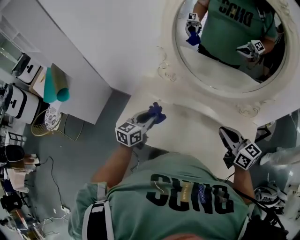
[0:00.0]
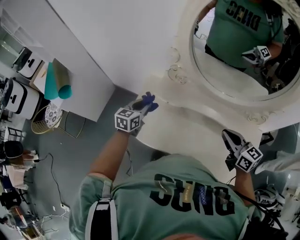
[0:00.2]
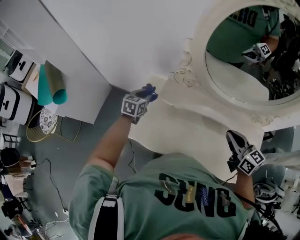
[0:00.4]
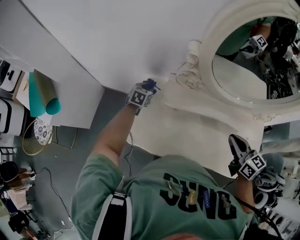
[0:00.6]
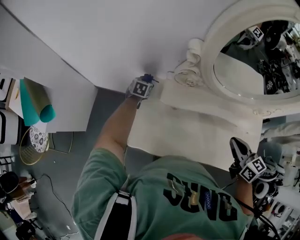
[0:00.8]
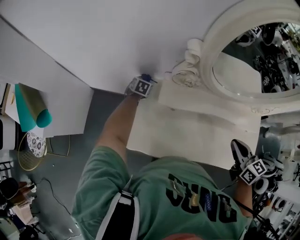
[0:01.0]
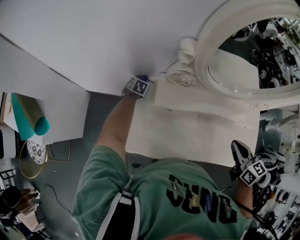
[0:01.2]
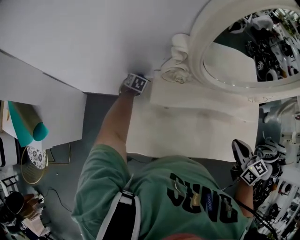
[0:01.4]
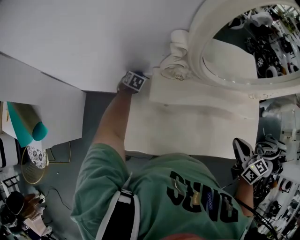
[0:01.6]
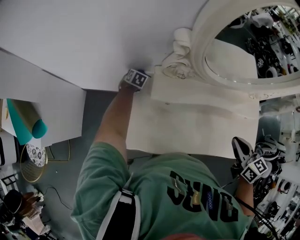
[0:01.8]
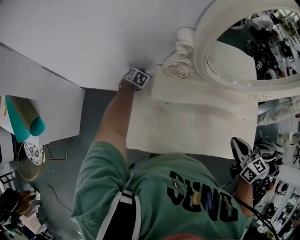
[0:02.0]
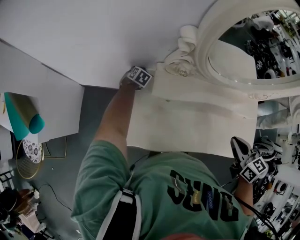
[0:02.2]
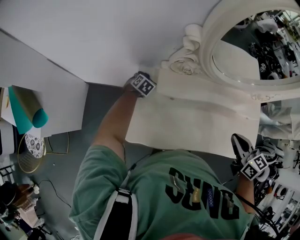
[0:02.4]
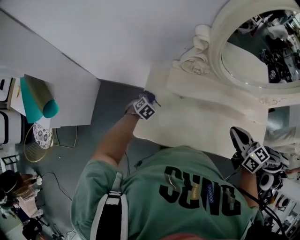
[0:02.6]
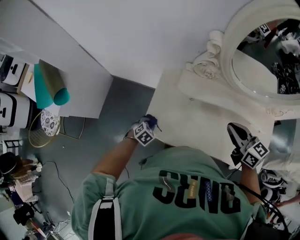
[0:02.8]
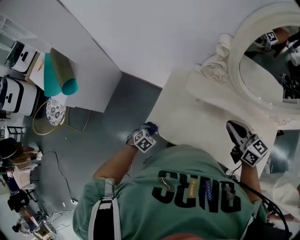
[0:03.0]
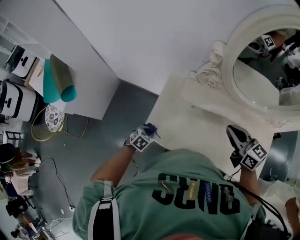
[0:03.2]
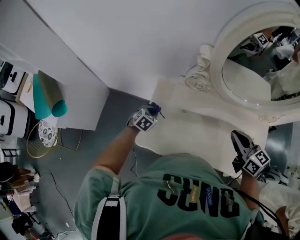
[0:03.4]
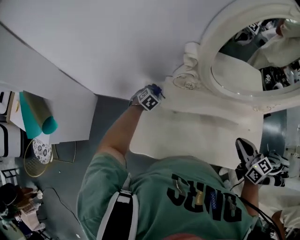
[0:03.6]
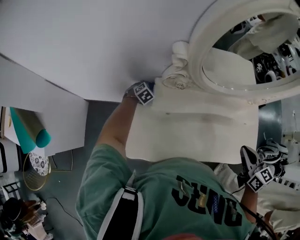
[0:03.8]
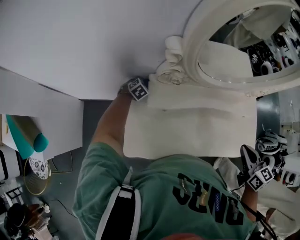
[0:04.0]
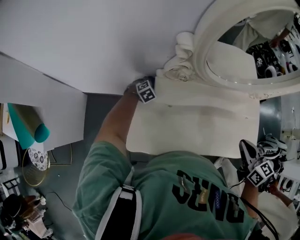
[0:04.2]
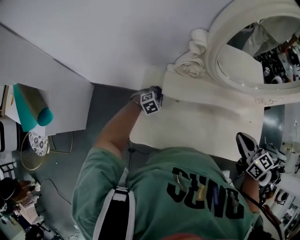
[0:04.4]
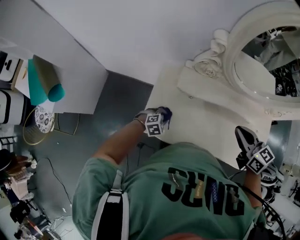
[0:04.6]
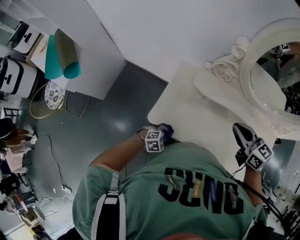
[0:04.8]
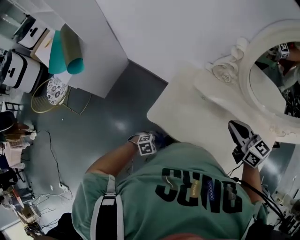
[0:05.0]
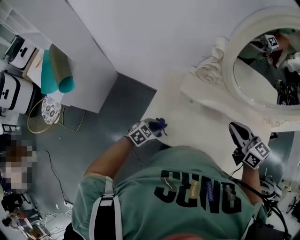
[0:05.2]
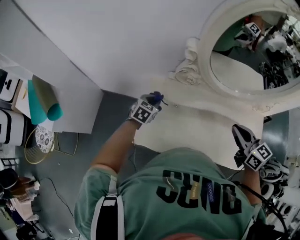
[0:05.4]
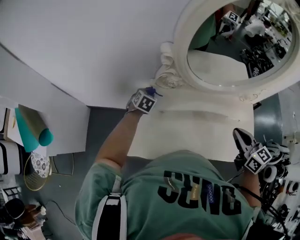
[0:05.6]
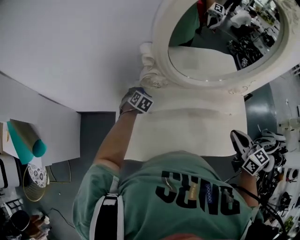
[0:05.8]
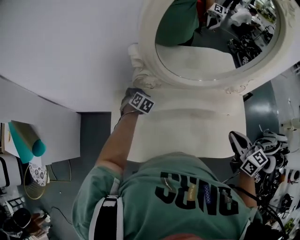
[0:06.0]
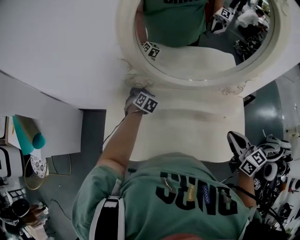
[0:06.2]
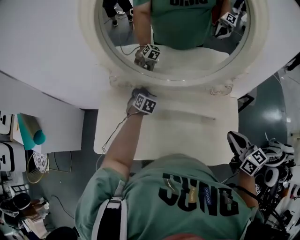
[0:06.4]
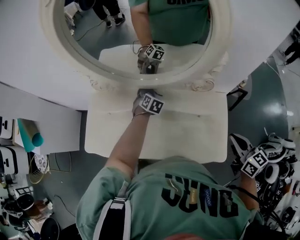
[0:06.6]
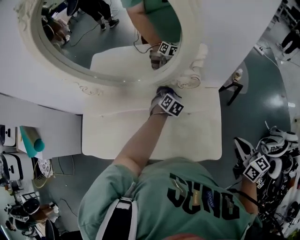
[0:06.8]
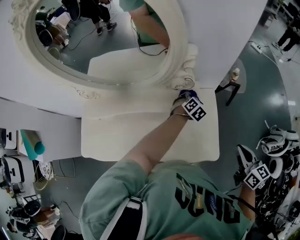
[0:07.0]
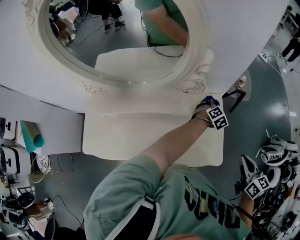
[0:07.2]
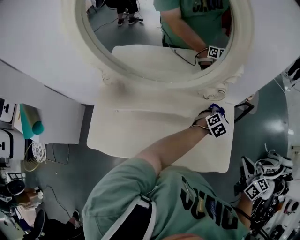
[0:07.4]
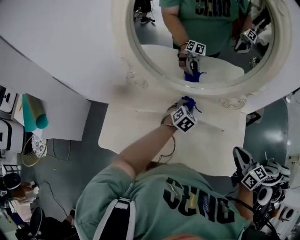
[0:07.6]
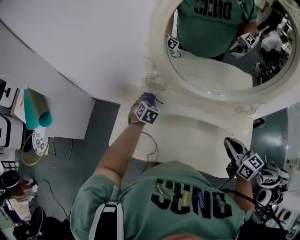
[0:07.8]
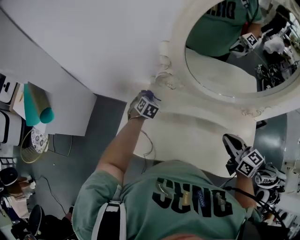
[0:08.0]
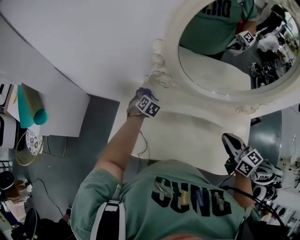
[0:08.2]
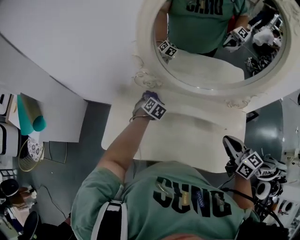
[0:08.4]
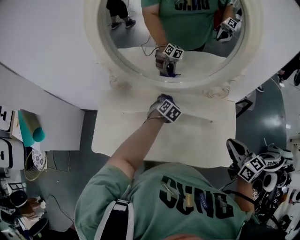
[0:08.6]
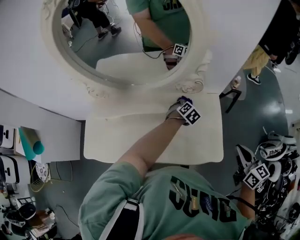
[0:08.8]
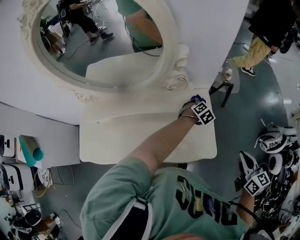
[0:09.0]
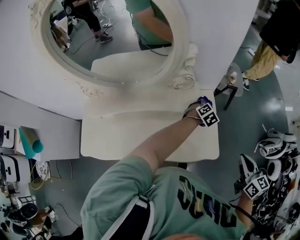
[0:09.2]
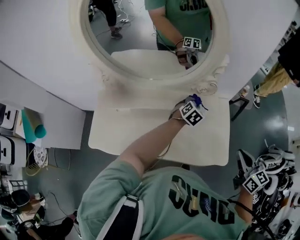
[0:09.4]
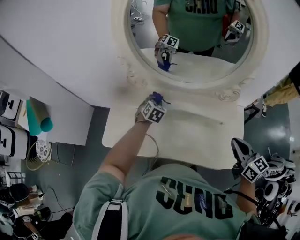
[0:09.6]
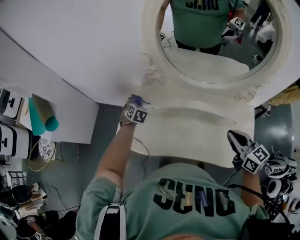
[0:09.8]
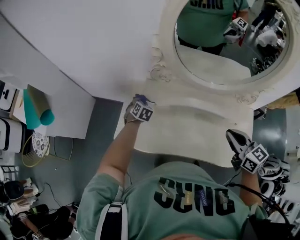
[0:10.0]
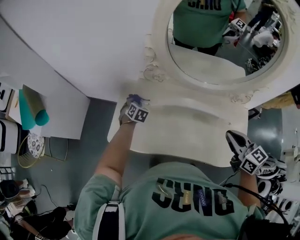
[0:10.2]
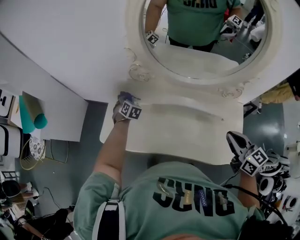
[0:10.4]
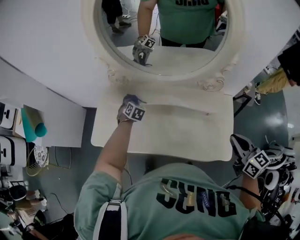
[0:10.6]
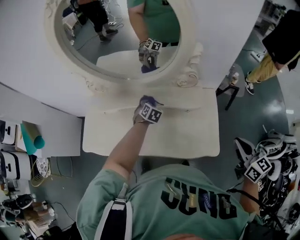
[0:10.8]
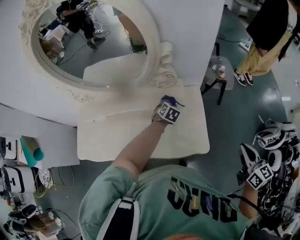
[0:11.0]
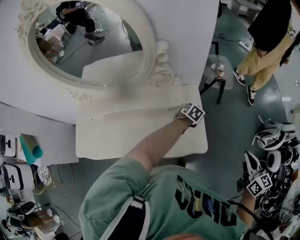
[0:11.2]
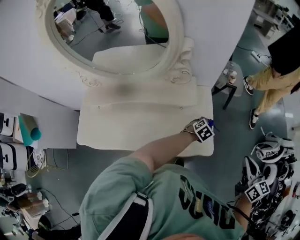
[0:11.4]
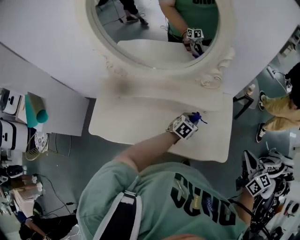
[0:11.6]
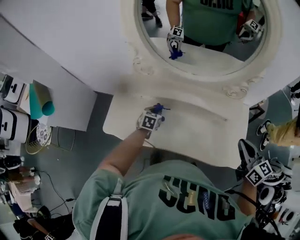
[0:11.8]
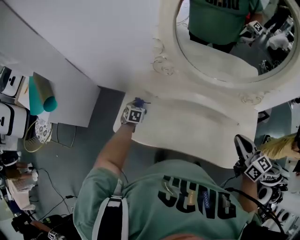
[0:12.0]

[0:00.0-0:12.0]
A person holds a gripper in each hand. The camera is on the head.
0:00.0 to 0:01.6: The right gripper heads to the left, covering roughly 10 cm, and turns by roughly 30 degrees. The left gripper is displaced forward and downward by some 40 cm, and points its fingers about 40 degrees further downward.
0:01.6 to 0:03.0: The left gripper moves backward, about 40 cm; the right gripper travels to the left and forward by roughly 15 cm, and changes its angle by roughly 30 degrees.
0:03.0 to 0:04.4: The right gripper is displaced to the right by approximately 10 cm, and turns by roughly 20 degrees, while the left gripper moves forward, some 25 cm, and rotates roughly 40 degrees.
0:04.4 to 0:06.0: The left gripper rotates some 30 degrees, while the right gripper shifts by about 15 cm.
0:06.0 to 0:07.6: The left gripper swivels approximately 20 degrees.
0:07.6 to 0:09.0: The right gripper ends up approximately 30 cm from where it was; the left gripper changes place by approximately 40 cm, and swivels approximately 30 degrees.
0:09.0 to 0:10.4: The right gripper moves approximately 40 cm, and rotates roughly 30 degrees. The left gripper moves roughly 70 cm, and changes its angle by some 50 degrees.
0:10.4 to 0:12.0: The left gripper changes its angle by about 20 degrees.

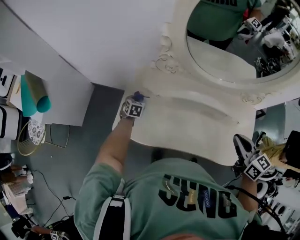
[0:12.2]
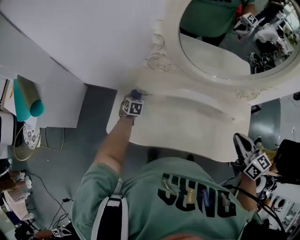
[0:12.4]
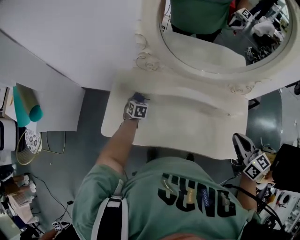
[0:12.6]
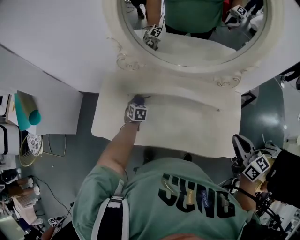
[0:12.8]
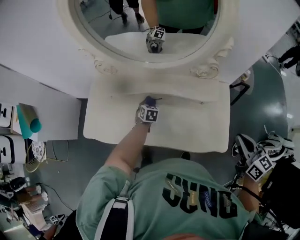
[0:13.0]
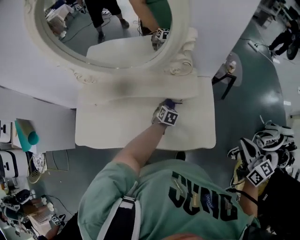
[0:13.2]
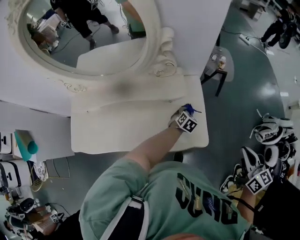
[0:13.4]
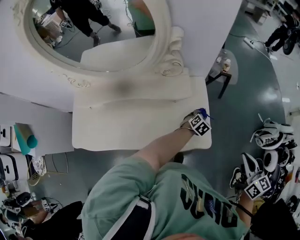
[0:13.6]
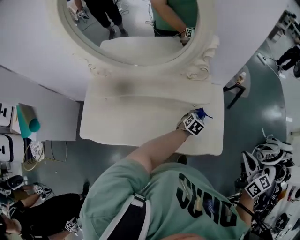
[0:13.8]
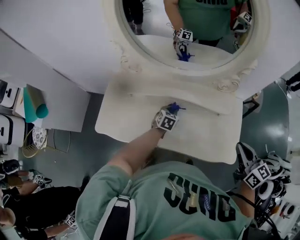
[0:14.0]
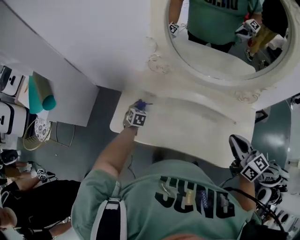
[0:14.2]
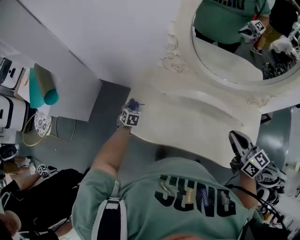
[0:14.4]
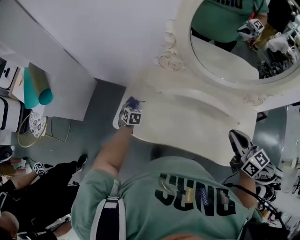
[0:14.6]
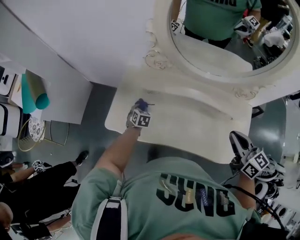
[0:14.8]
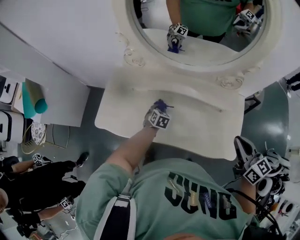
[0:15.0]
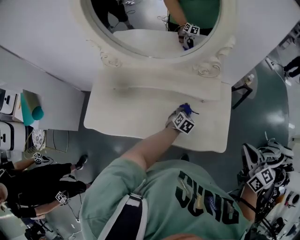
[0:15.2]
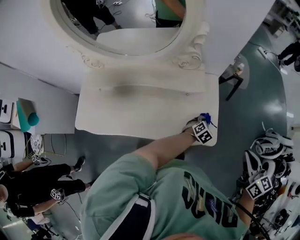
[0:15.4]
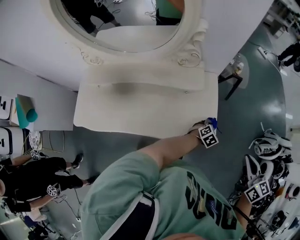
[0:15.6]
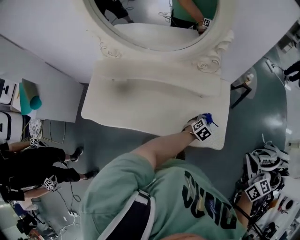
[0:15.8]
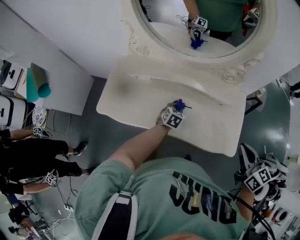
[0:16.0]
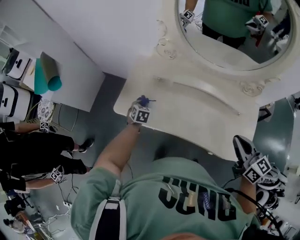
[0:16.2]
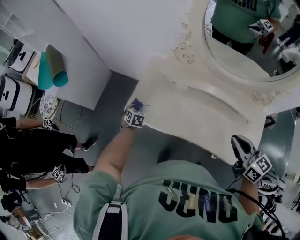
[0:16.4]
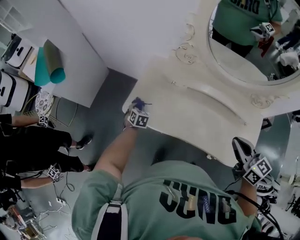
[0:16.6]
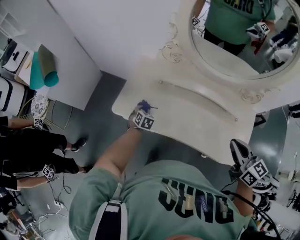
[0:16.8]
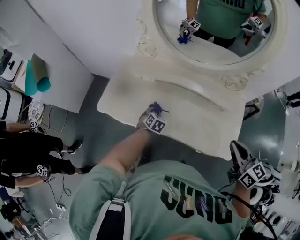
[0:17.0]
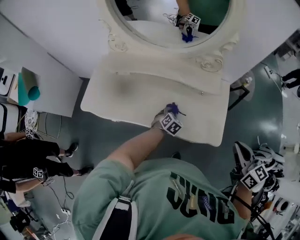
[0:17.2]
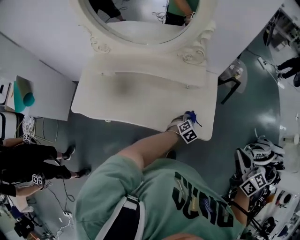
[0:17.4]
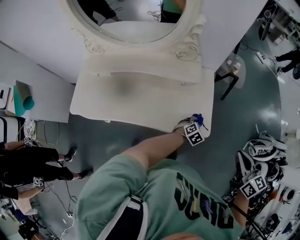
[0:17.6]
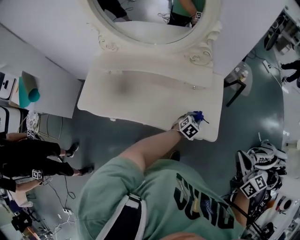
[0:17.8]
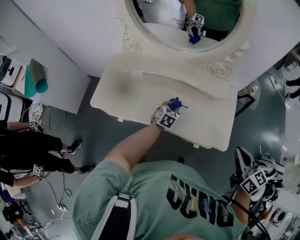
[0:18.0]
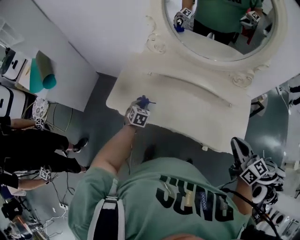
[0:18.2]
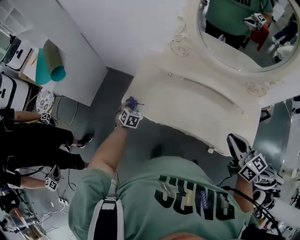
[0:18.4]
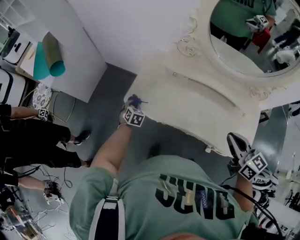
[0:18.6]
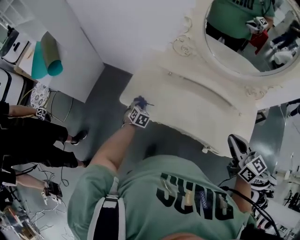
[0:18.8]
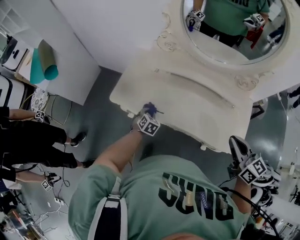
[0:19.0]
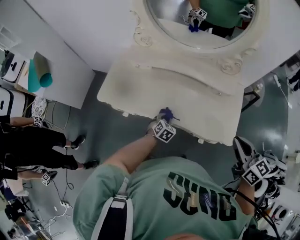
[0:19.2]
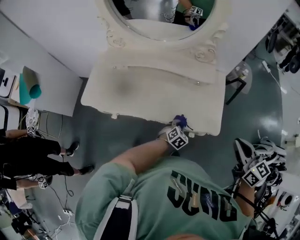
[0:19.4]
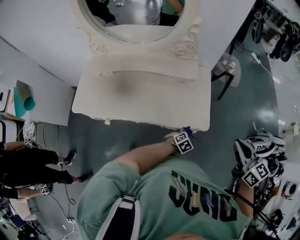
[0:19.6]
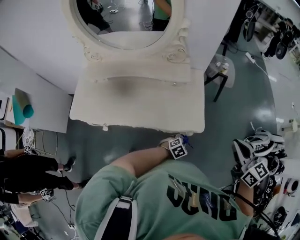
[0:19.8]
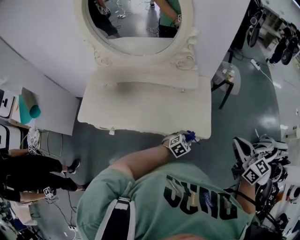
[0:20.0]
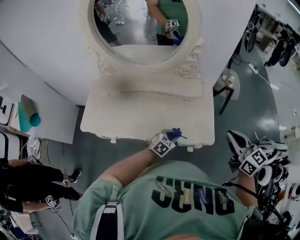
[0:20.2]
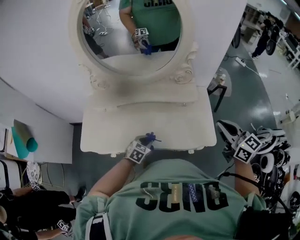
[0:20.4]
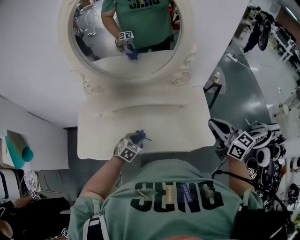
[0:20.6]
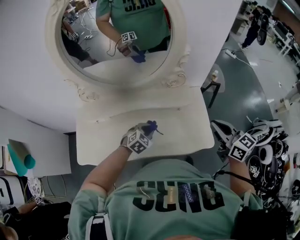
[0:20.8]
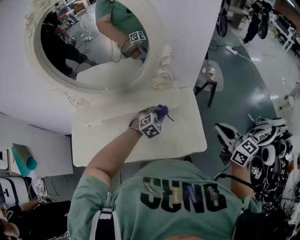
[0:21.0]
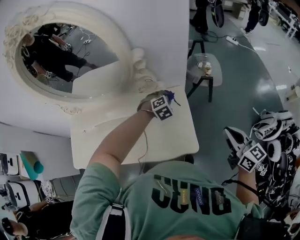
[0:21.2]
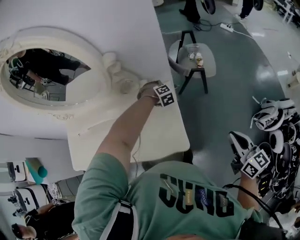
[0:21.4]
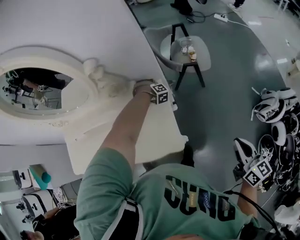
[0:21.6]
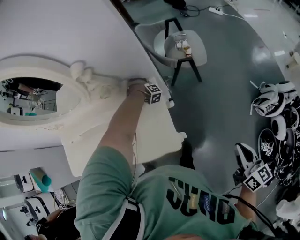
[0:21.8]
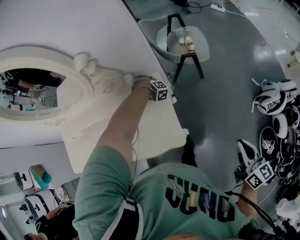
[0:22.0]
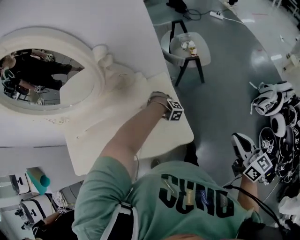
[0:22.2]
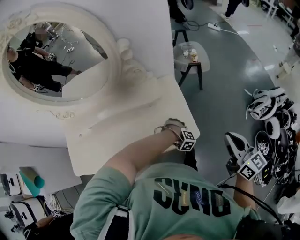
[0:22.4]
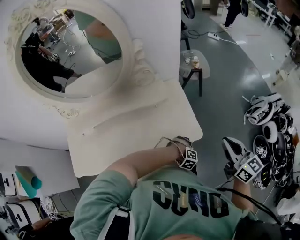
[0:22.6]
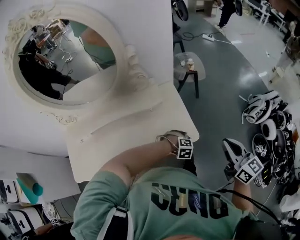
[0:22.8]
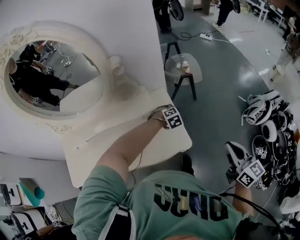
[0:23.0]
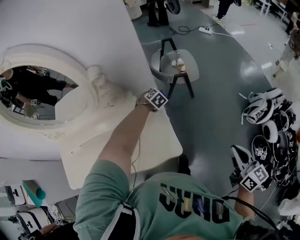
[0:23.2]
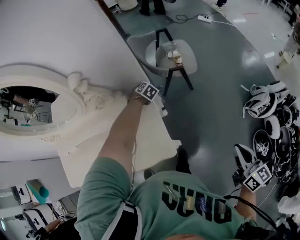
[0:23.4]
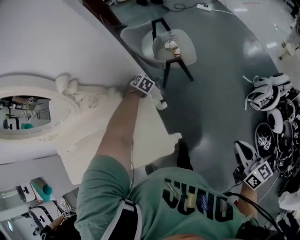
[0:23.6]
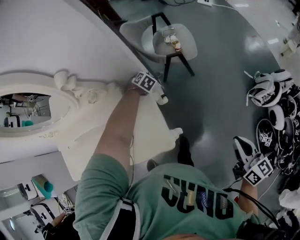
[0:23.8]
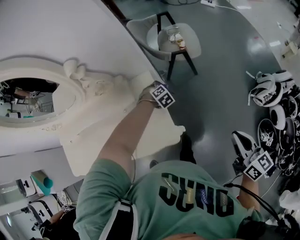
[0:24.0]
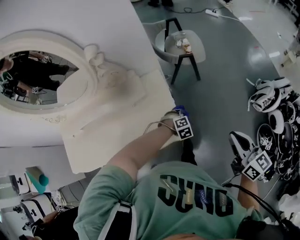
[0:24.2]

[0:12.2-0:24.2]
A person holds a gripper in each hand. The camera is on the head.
0:12.2 to 0:13.8: The two grippers travel together, approximately 60 cm. The left gripper rotates roughly 40 degrees; the right gripper changes its angle by approximately 20 degrees.
0:15.2 to 0:16.6: The right gripper shifts by roughly 40 cm, and rotates some 30 degrees. Meanwhile the left gripper ends up some 60 cm from where it was, and changes its angle by roughly 40 degrees.
0:18.2 to 0:19.8: The right gripper moves approximately 35 cm; the left gripper ends up about 60 cm from where it was, and rotates approximately 60 degrees.
0:19.8 to 0:21.2: The left gripper shifts approximately 40 cm forward and upward, goes to the left and returns, some 40 cm each way, and rotates some 30 degrees, while the right gripper heads forward, covering some 15 cm, and goes to the left and returns, about 25 cm each way.
0:21.2 to 0:22.6: The left gripper changes place by about 40 cm, and rotates around the line of its fingers by approximately 50 degrees, clockwise from behind. The right gripper moves approximately 5 cm downward and comes back.
0:22.6 to 0:24.2: The left gripper moves approximately 10 cm upward and comes back, and turns by approximately 40 degrees.
